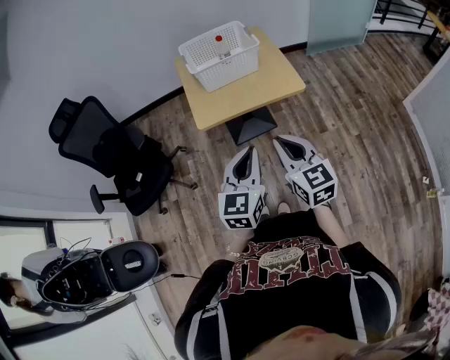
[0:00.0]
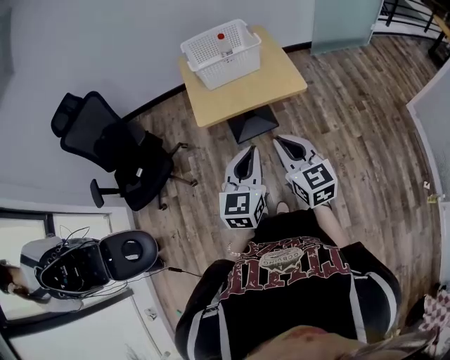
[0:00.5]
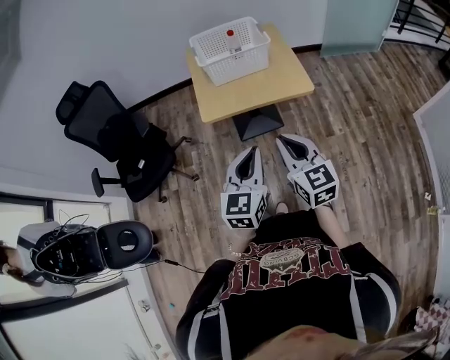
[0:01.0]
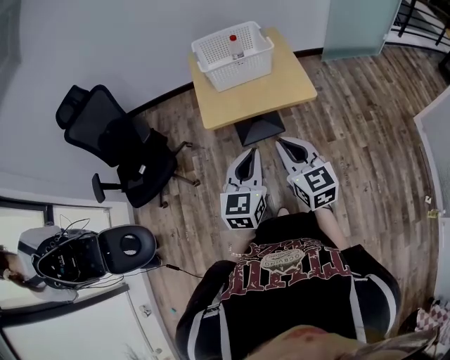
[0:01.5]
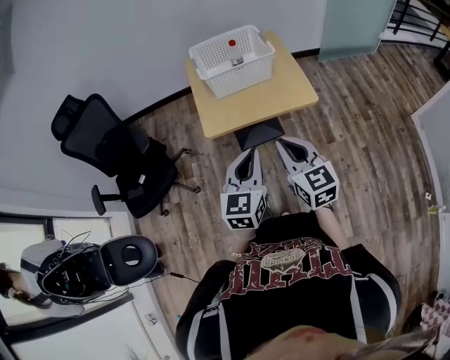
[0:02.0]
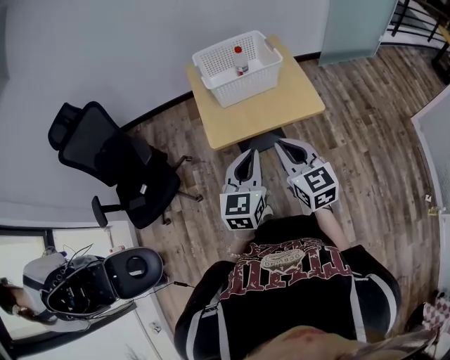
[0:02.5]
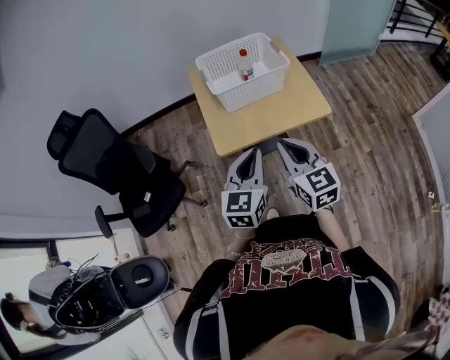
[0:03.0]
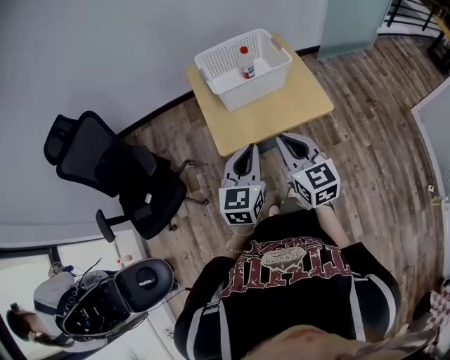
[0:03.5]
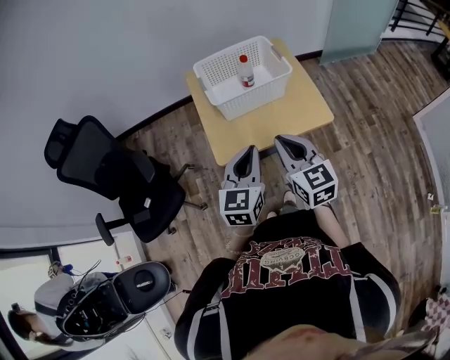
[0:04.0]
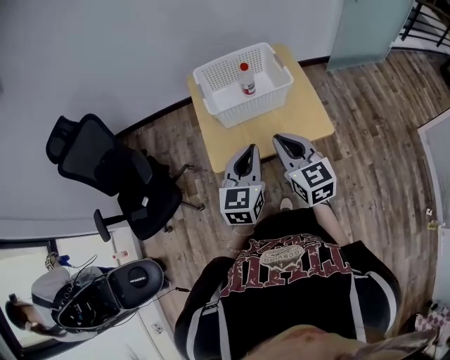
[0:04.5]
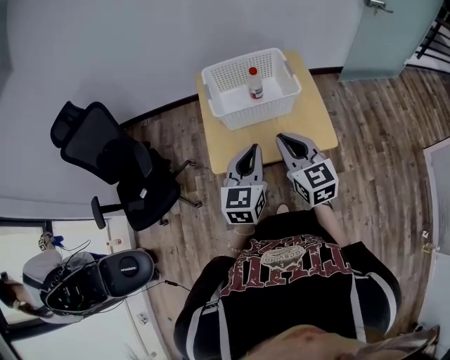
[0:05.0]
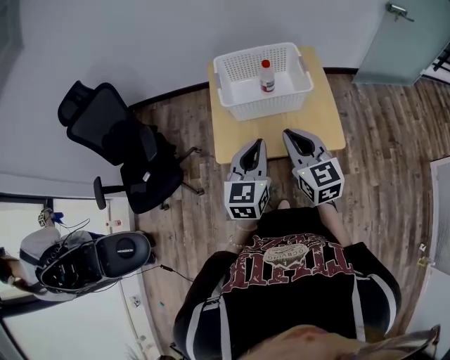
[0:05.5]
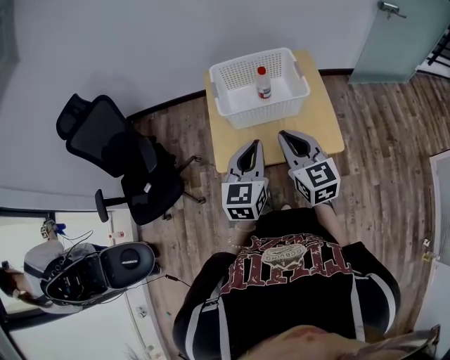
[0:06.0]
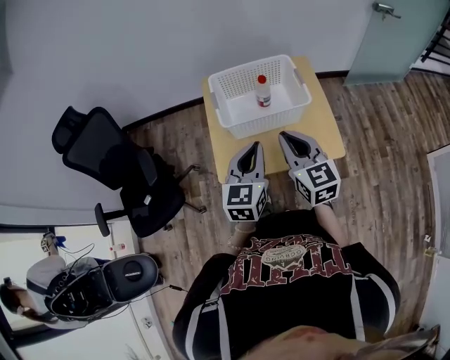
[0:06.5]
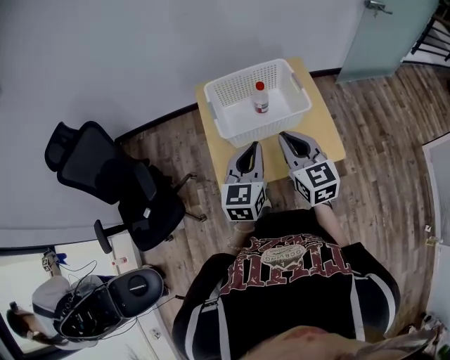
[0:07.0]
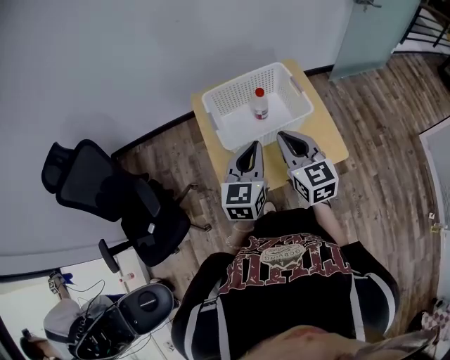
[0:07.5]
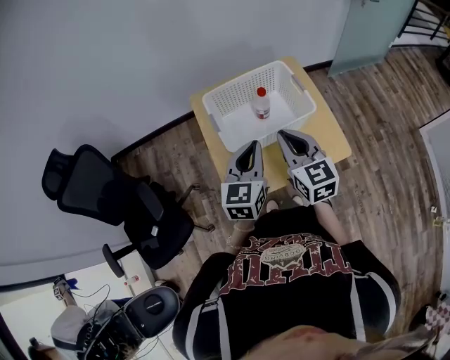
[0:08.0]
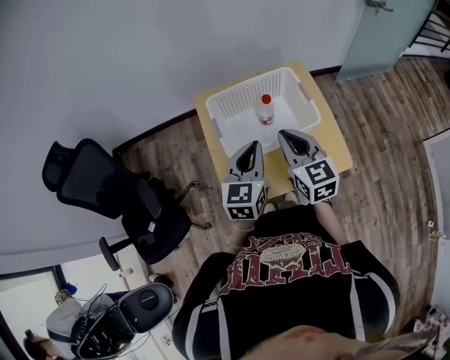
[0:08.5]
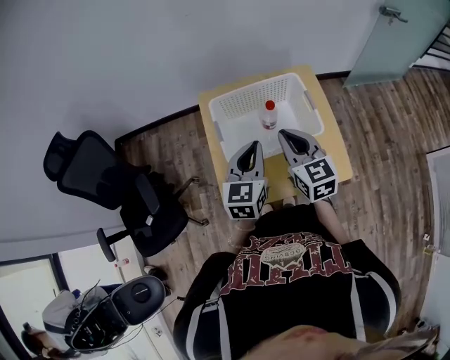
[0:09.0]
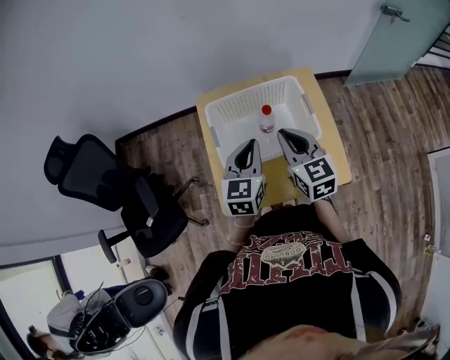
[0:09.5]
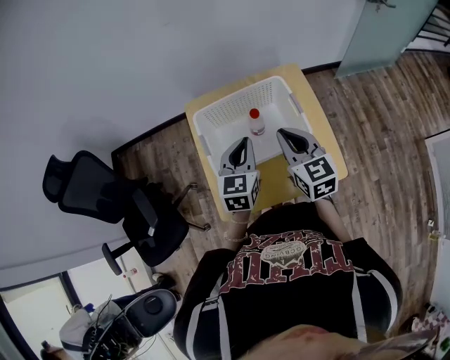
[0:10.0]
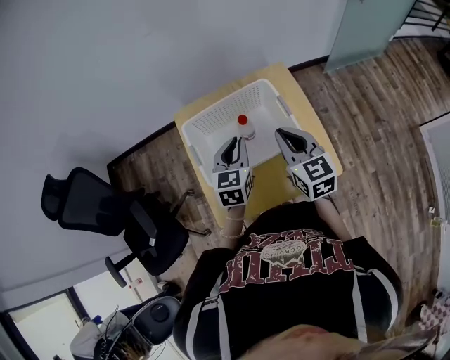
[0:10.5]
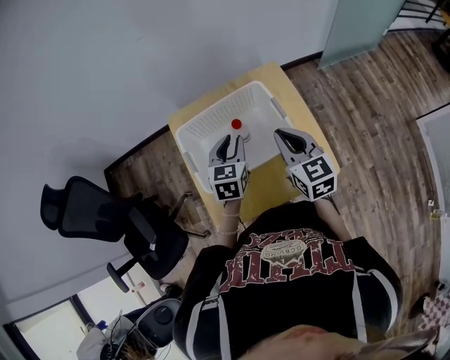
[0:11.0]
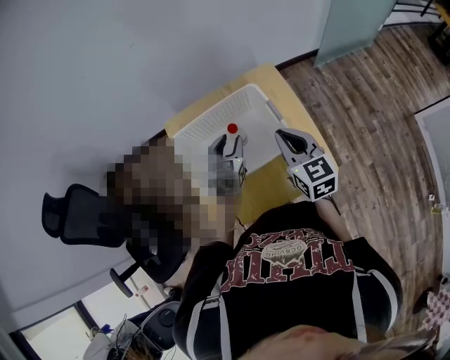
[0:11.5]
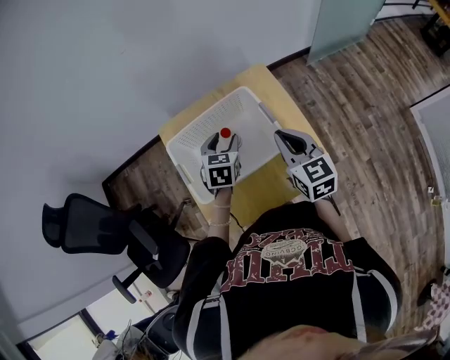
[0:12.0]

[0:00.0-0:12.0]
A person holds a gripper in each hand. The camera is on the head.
0:00.0 to 0:02.0: The grippers stay close to where they were, moving slightly.
0:02.0 to 0:04.0: The grippers both shift forward by about 15 cm.
0:04.0 to 0:06.0: Both grippers travel together forward, roughly 10 cm.
0:06.0 to 0:08.0: The grippers both shift forward by some 10 cm.
0:08.0 to 0:10.0: Both grippers travel together forward, approximately 15 cm.
0:10.0 to 0:12.0: The right gripper is displaced to the right by approximately 10 cm. Meanwhile the left gripper heads forward and downward, covering about 10 cm, rotates roughly 20 degrees, and opens its fingers.

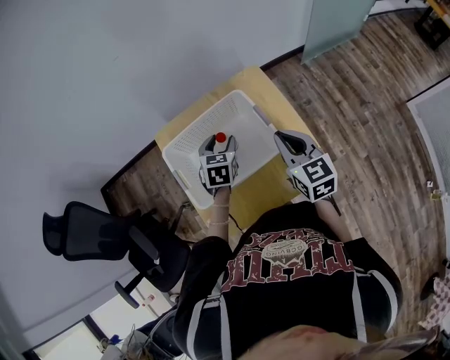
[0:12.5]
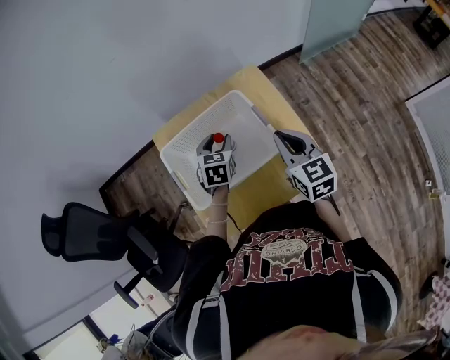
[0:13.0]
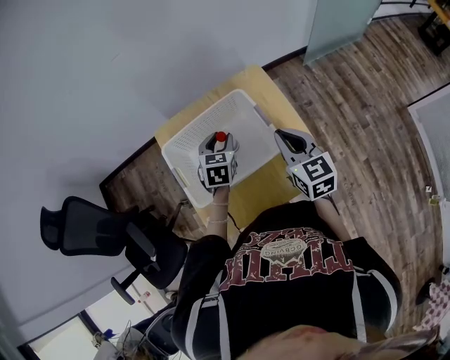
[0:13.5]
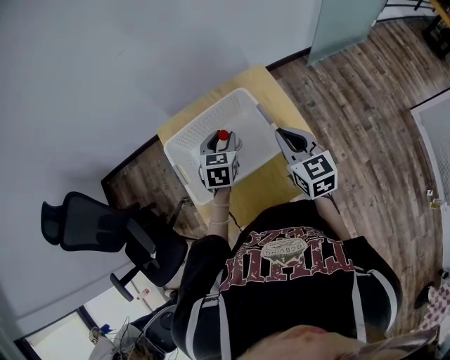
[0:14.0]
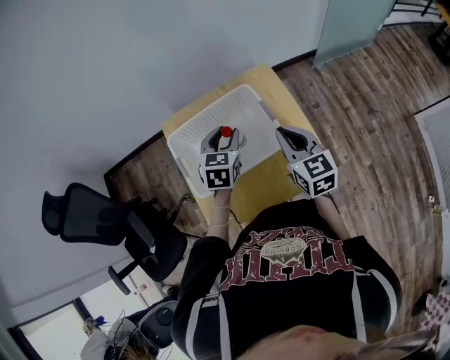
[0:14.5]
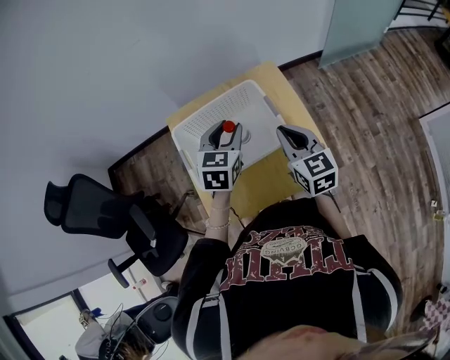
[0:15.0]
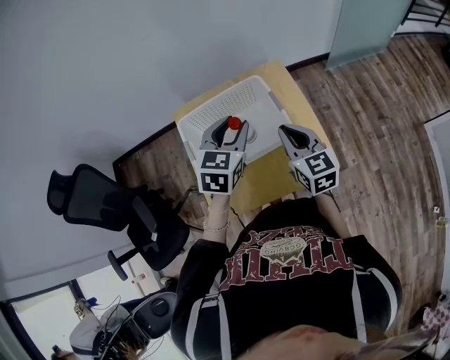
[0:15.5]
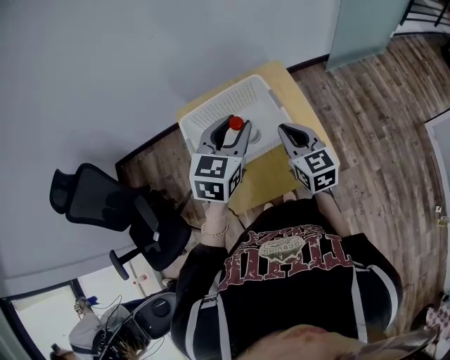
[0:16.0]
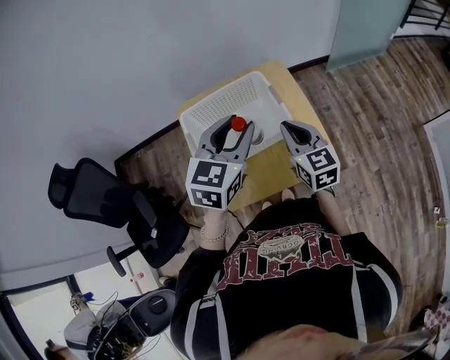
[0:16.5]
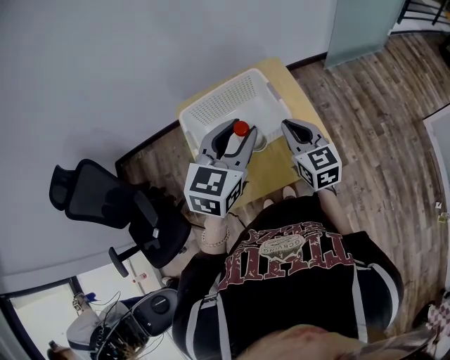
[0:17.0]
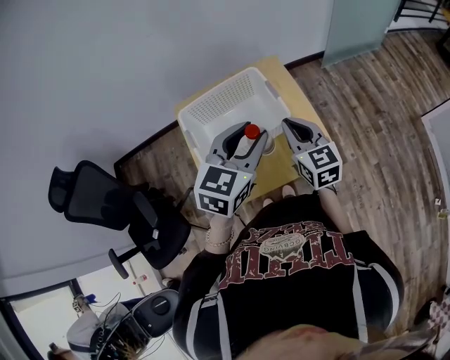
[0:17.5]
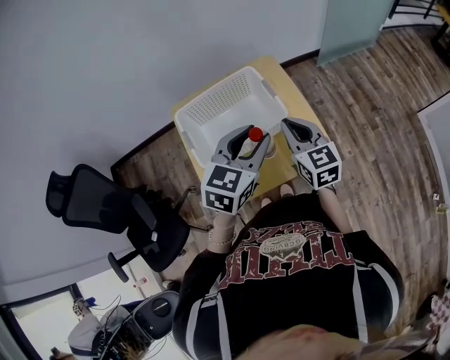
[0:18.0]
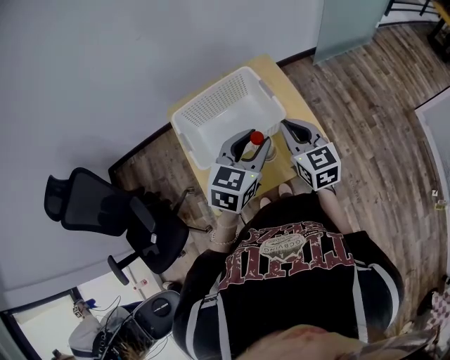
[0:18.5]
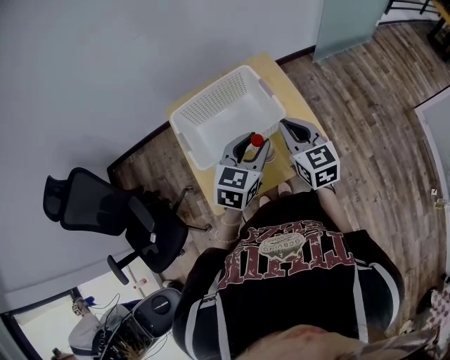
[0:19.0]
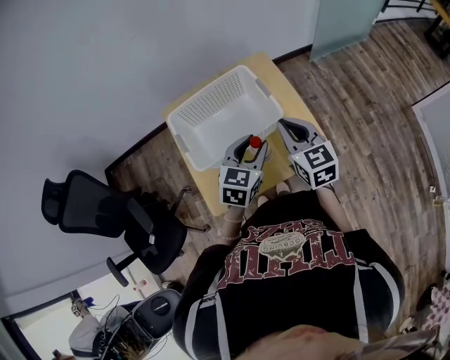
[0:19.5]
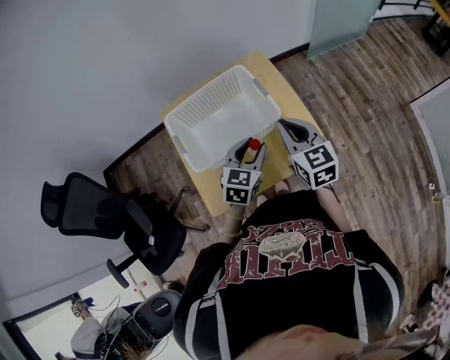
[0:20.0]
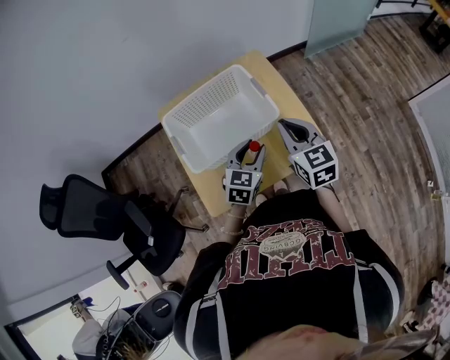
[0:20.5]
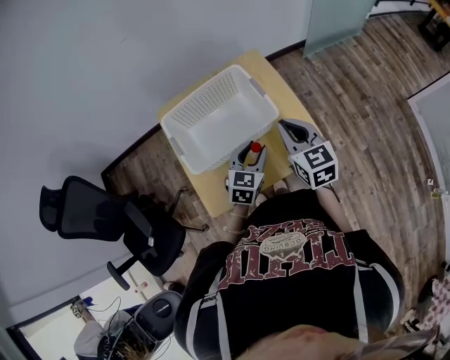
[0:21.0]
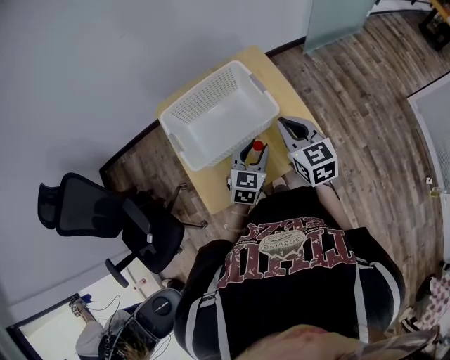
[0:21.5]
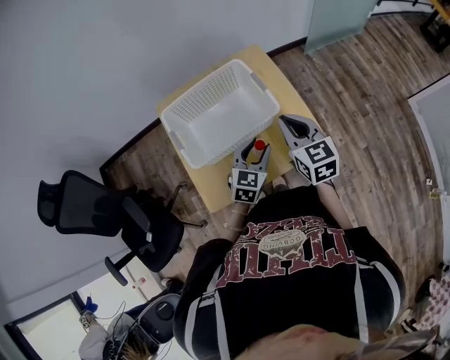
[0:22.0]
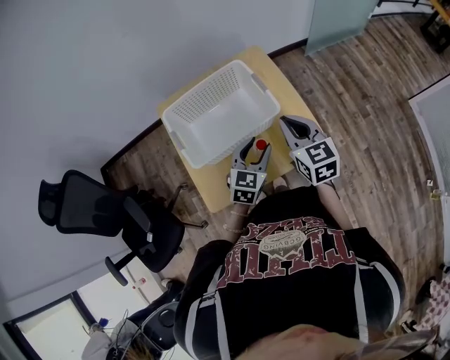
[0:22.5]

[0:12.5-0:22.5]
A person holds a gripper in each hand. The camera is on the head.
0:12.5 to 0:14.5: The left gripper goes approximately 5 cm upward.
0:14.5 to 0:16.5: The right gripper goes some 5 cm backward; the left gripper moves upward and backward, about 20 cm.
0:16.5 to 0:18.5: The left gripper heads downward, covering approximately 5 cm.
0:18.5 to 0:20.5: The left gripper goes about 15 cm downward.
0:20.5 to 0:22.5: There are only small adjustments of the grippers.

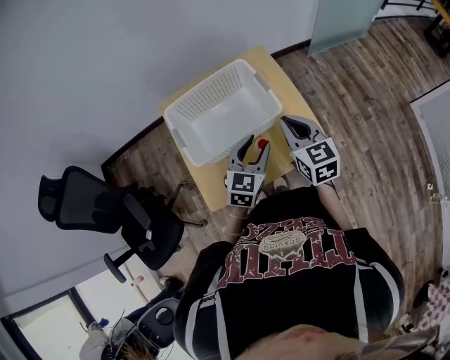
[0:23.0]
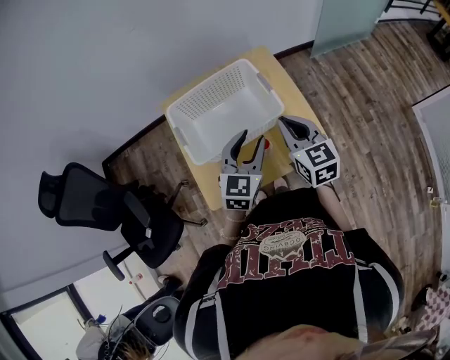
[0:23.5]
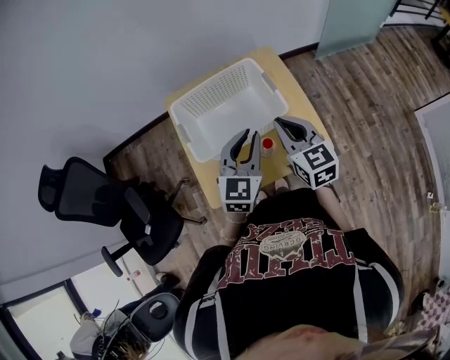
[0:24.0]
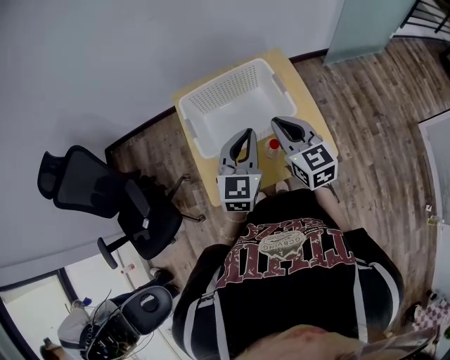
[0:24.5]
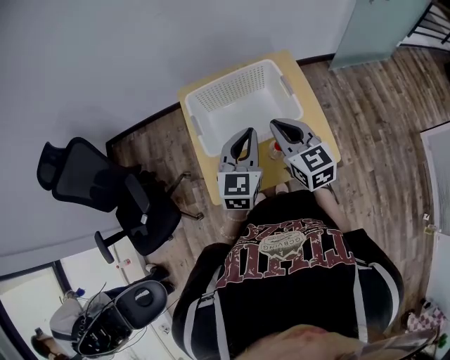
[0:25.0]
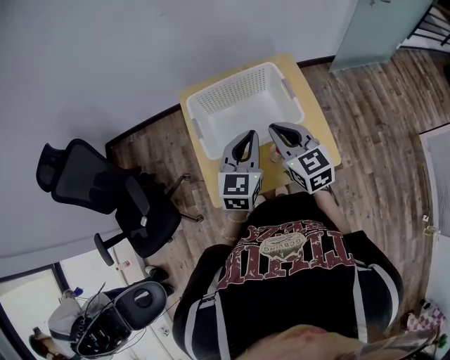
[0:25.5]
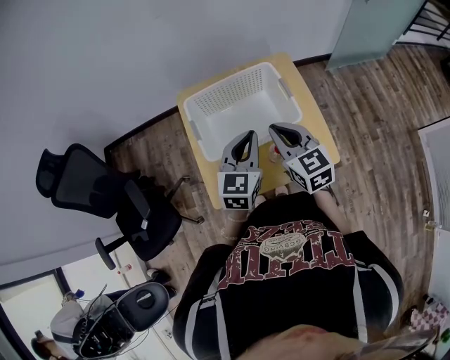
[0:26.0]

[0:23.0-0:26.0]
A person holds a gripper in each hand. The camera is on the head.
0:23.0 to 0:24.5: The left gripper moves upward and to the left, approximately 10 cm, and closes up, while the right gripper heads to the left, covering approximately 5 cm.
0:24.5 to 0:26.0: There are only small adjustments of the grippers.

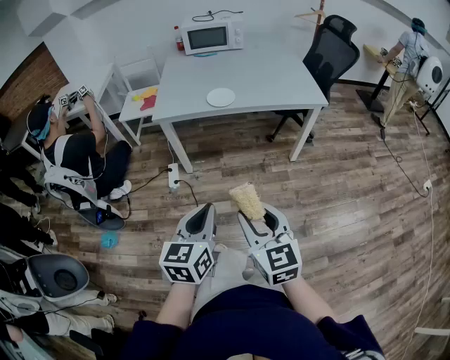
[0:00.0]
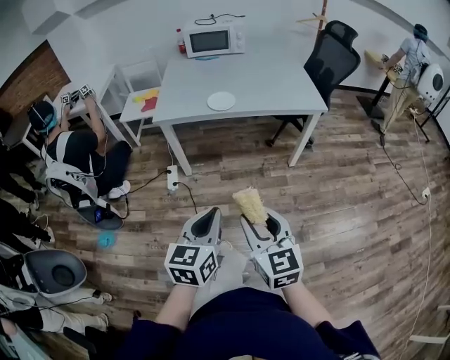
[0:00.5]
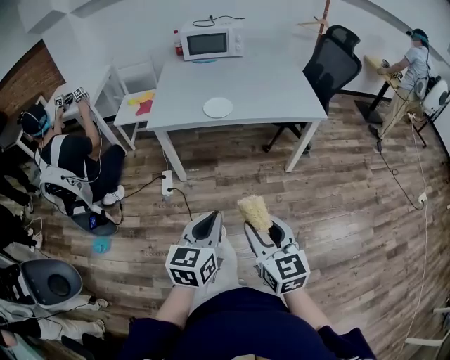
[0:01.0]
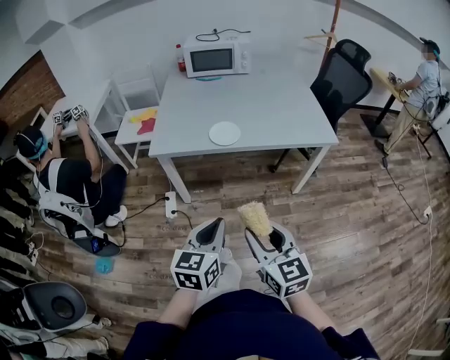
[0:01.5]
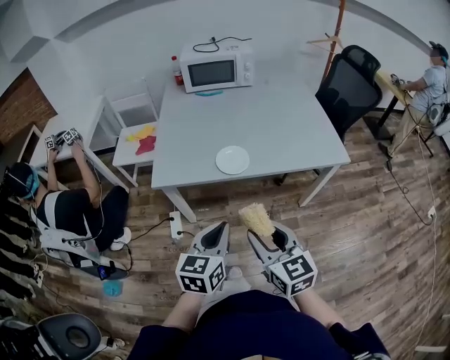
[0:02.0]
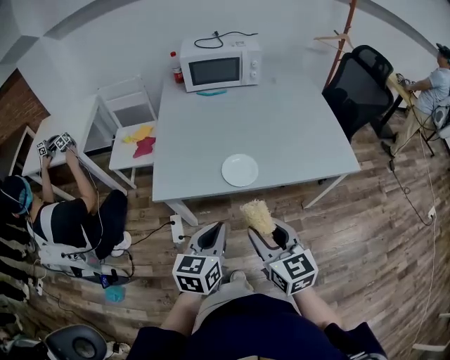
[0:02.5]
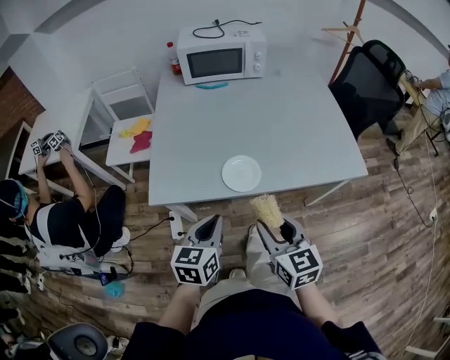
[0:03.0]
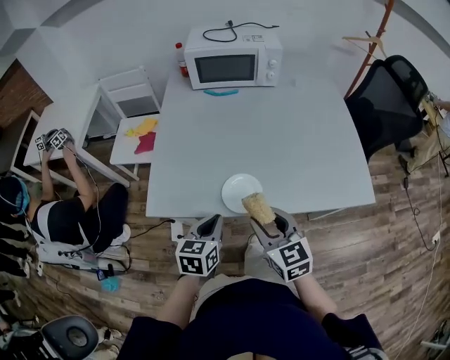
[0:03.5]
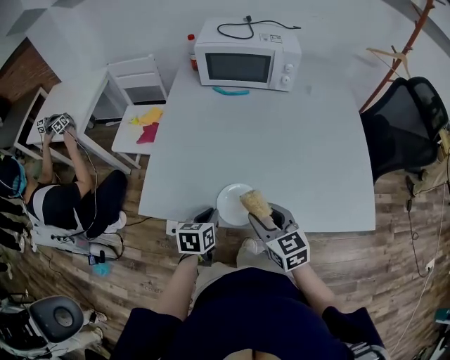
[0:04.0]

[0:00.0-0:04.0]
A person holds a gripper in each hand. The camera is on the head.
0:00.0 to 0:02.0: The grippers both shift forward by roughly 30 cm.
0:02.0 to 0:04.0: The left gripper heads forward and downward, covering roughly 35 cm, and rotates approximately 30 degrees, while the right gripper shifts approximately 30 cm forward.
